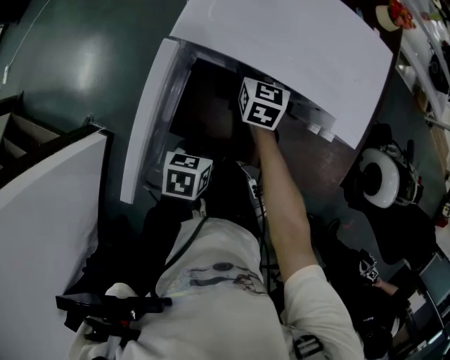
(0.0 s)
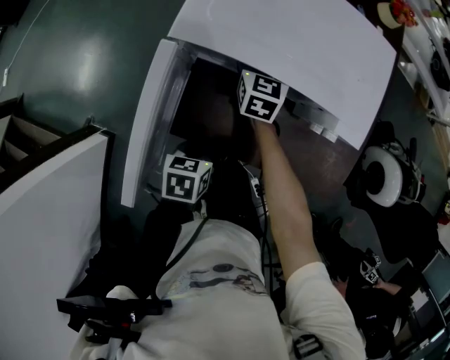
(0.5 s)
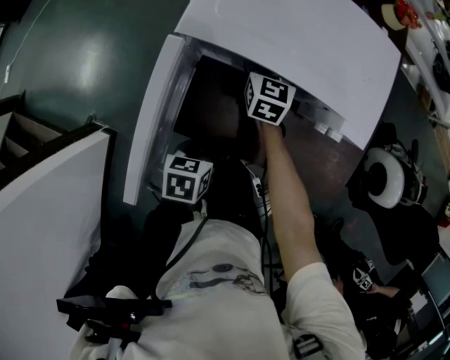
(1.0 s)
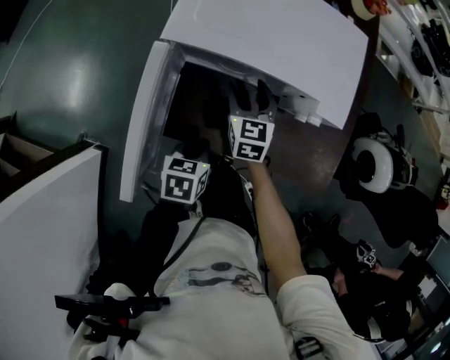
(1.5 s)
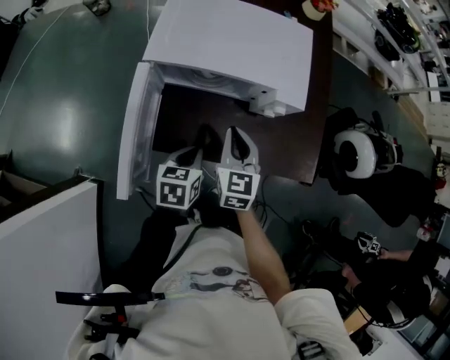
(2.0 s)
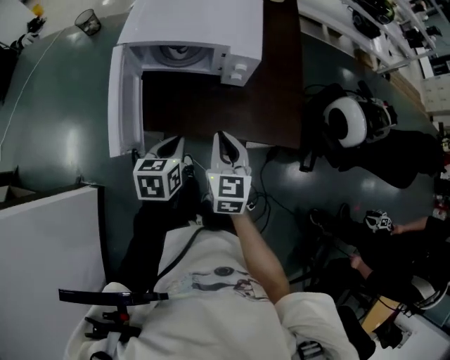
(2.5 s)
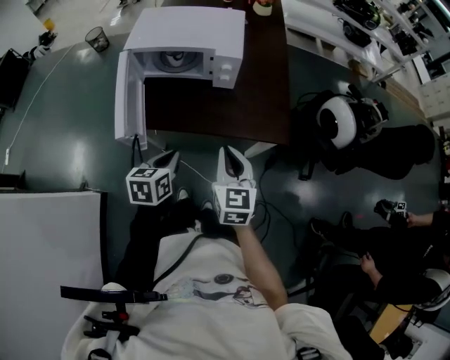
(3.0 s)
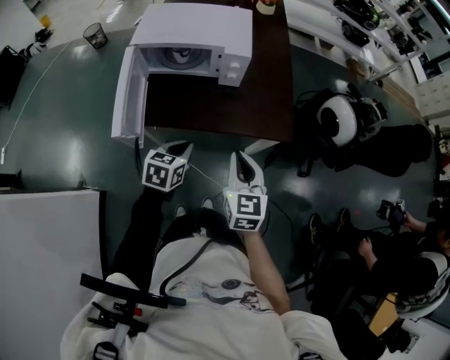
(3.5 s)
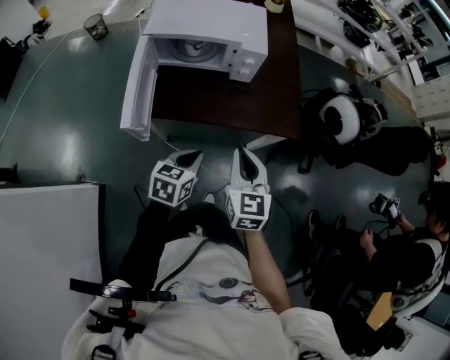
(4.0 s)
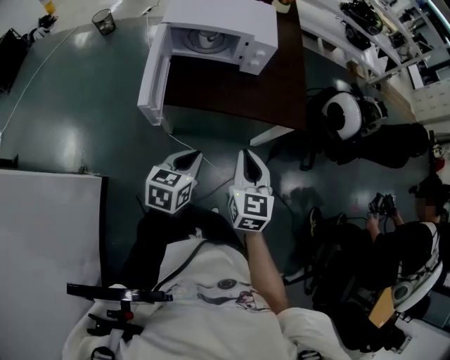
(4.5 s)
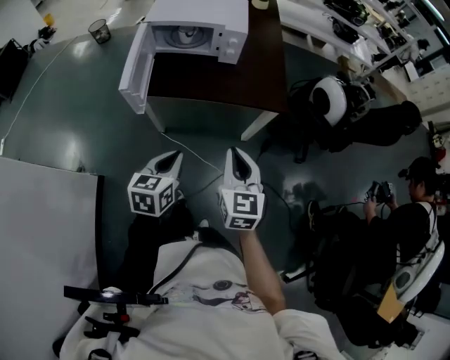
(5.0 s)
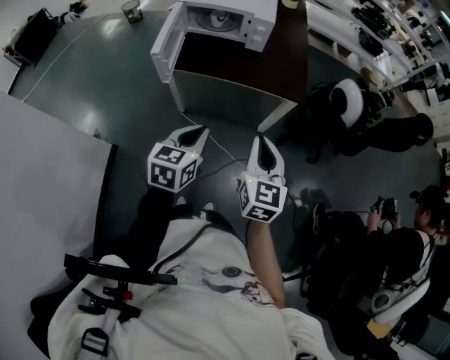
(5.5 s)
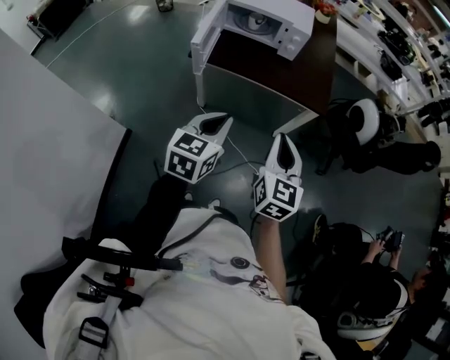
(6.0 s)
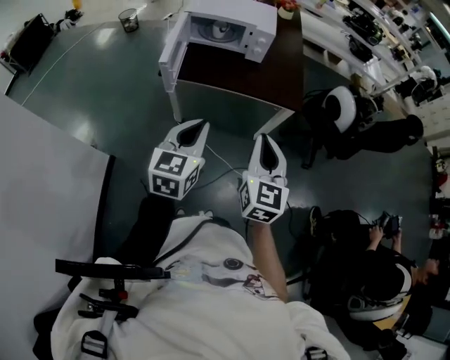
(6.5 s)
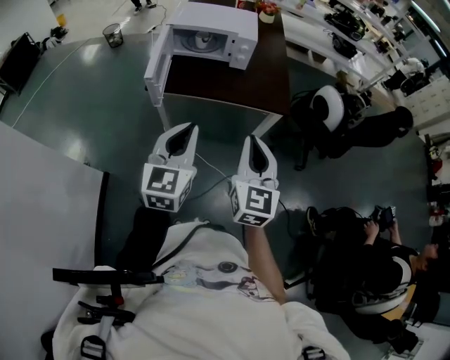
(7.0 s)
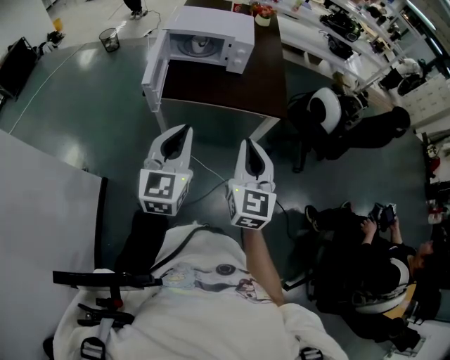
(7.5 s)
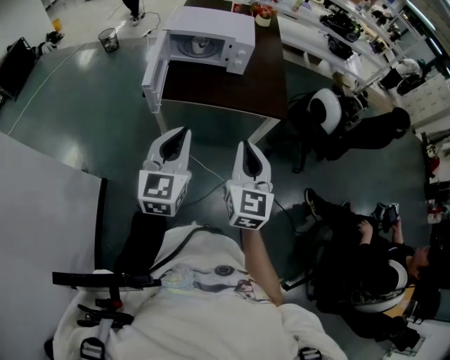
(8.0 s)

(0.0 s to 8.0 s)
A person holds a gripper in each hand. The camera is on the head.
0.0 s - 2.0 s: The left gripper heads upward, covering some 5 cm. Meanwhile the right gripper heads backward, to the right and upward, covering some 25 cm, and closes up.
2.0 s - 4.0 s: Both grippers move backward and to the right, about 20 cm.
4.0 s - 6.0 s: The left gripper is displaced backward and upward by some 25 cm, and rotates some 20 degrees, while the right gripper goes approximately 20 cm backward.
6.0 s - 8.0 s: The right gripper changes place by some 5 cm, while the left gripper shifts roughly 5 cm upward.

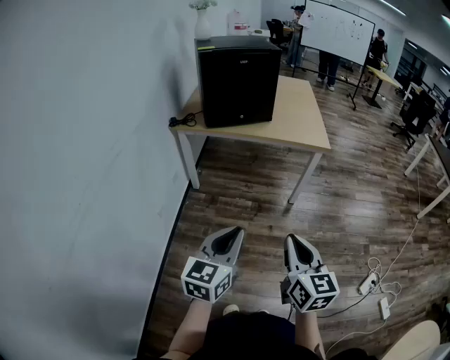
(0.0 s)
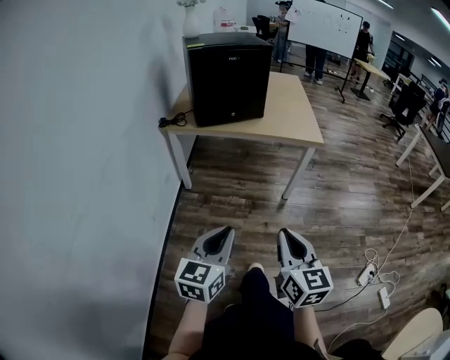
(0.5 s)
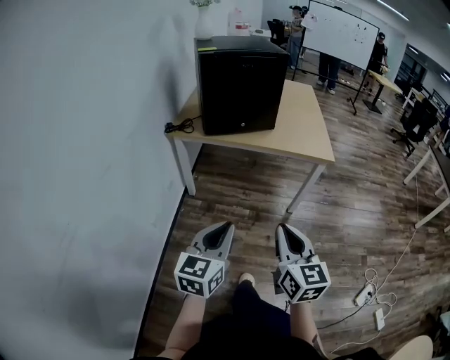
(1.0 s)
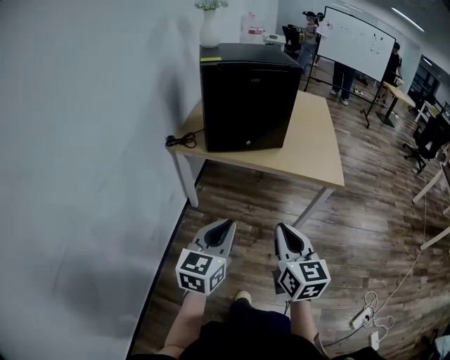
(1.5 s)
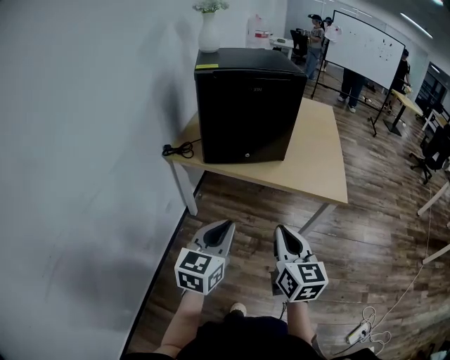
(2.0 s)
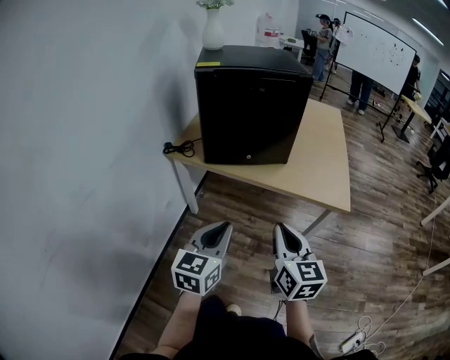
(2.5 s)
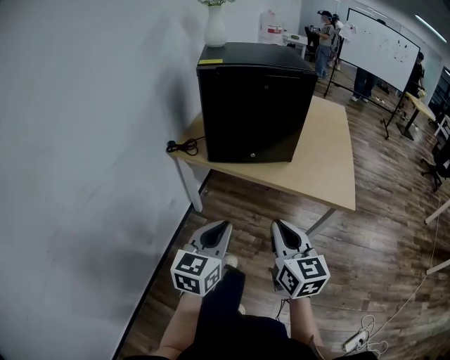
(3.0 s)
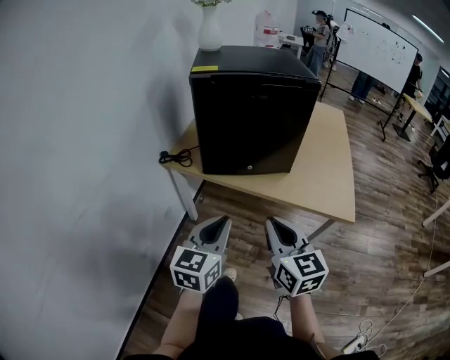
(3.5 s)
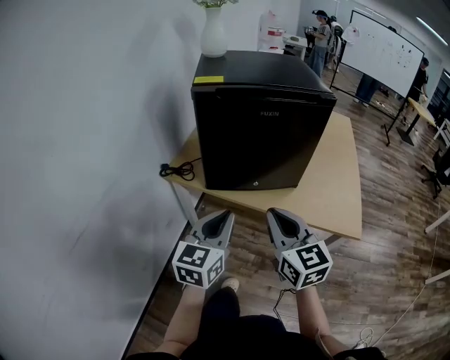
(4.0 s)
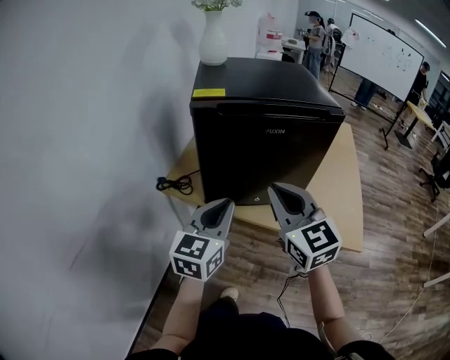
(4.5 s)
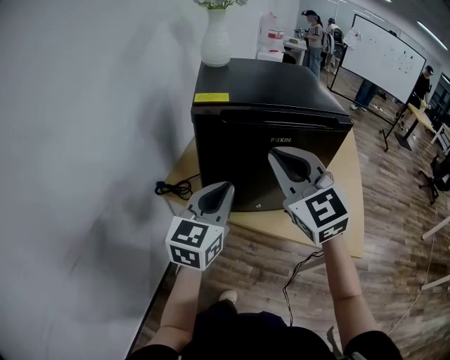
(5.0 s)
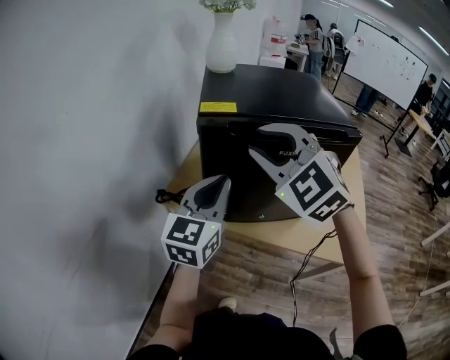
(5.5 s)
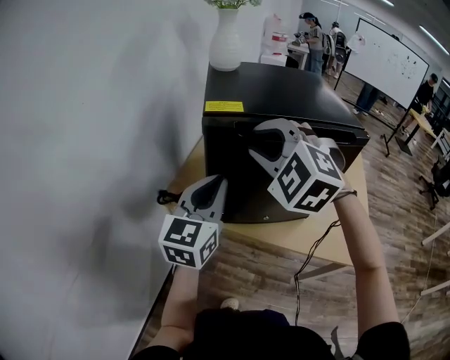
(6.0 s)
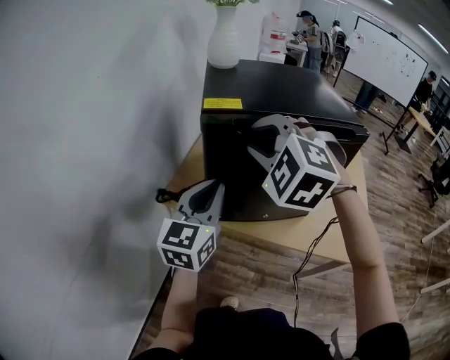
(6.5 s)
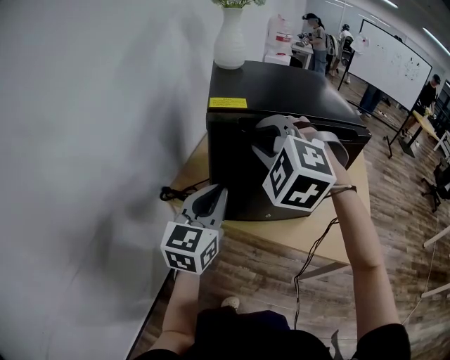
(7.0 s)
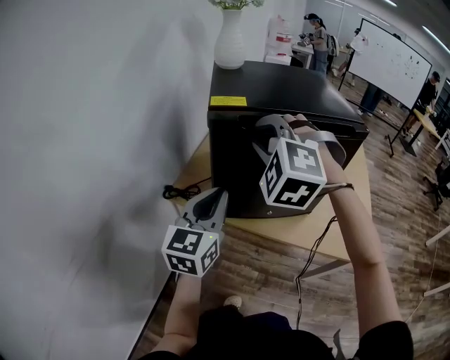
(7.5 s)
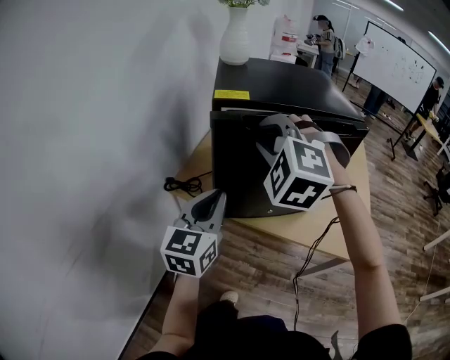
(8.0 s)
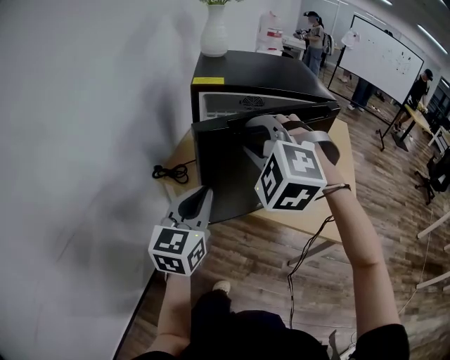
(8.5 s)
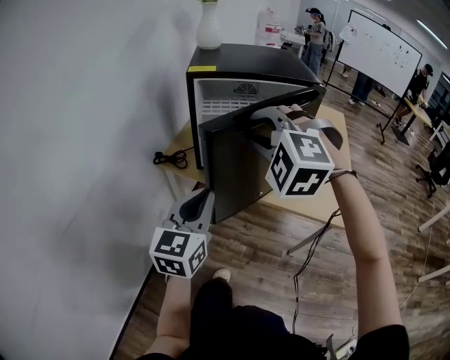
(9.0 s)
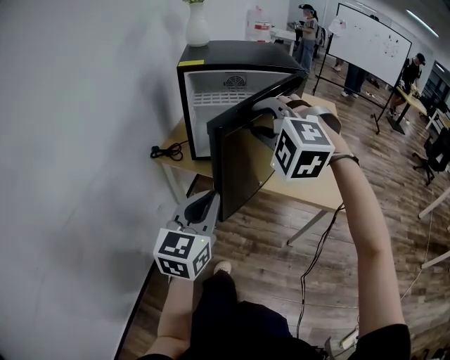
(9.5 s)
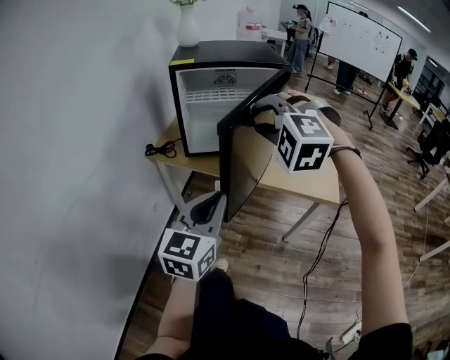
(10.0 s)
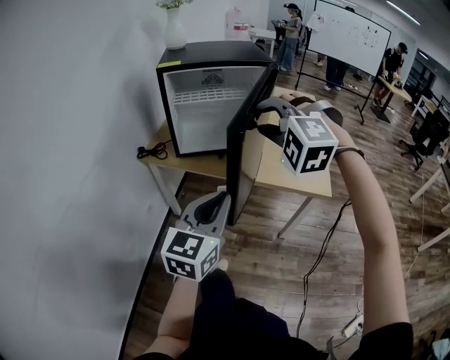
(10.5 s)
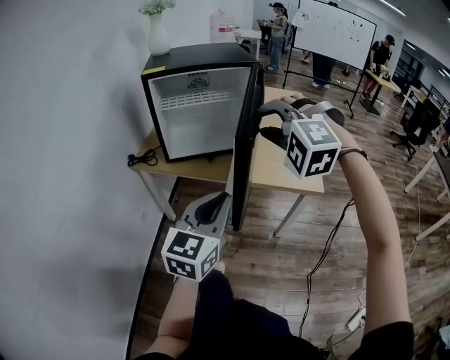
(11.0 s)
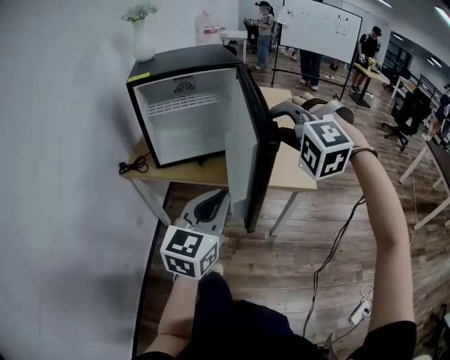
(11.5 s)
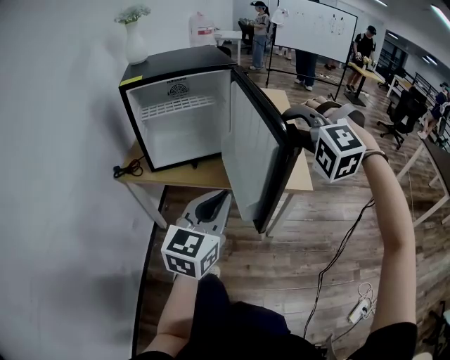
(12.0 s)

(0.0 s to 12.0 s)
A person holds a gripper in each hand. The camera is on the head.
0.0 s - 2.0 s: Both grippers move forward, about 35 cm.
2.0 s - 4.0 s: Both grippers travel together forward, approximately 20 cm.
4.0 s - 6.0 s: The left gripper is displaced forward and upward by about 20 cm. Meanwhile the right gripper shifts some 30 cm forward, upward and to the left, rotates around the line of its fingers by approximately 60 degrees, counterclockwise from behind, and opens.
6.0 s - 8.0 s: The left gripper goes approximately 5 cm backward.
8.0 s - 10.0 s: Both grippers move backward and to the right, about 25 cm.
10.0 s - 12.0 s: The right gripper shifts about 20 cm to the right, while the left gripper moves to the right, approximately 10 cm.

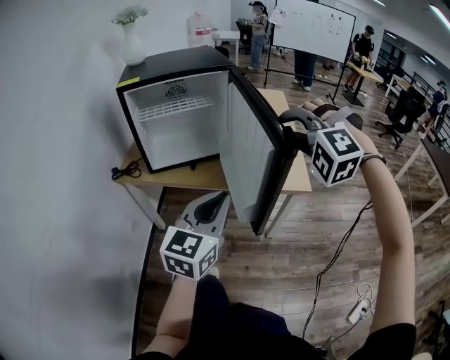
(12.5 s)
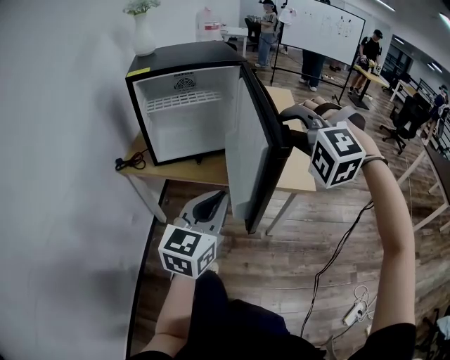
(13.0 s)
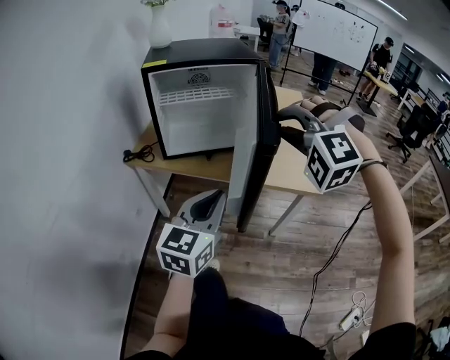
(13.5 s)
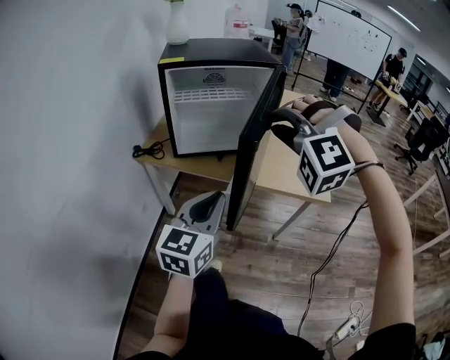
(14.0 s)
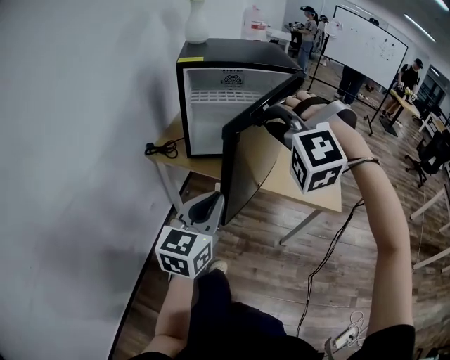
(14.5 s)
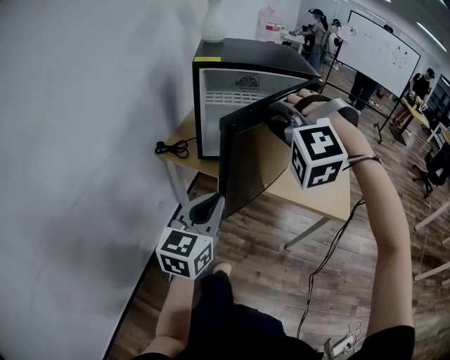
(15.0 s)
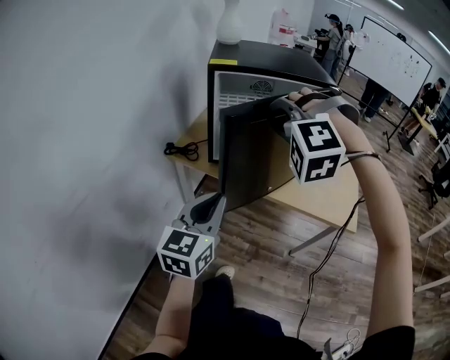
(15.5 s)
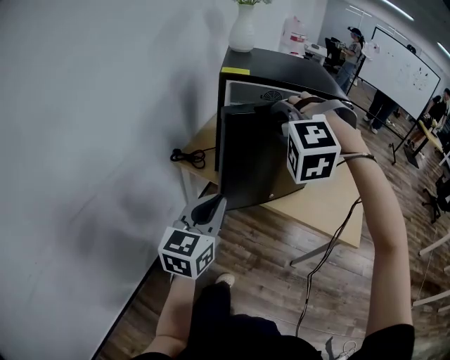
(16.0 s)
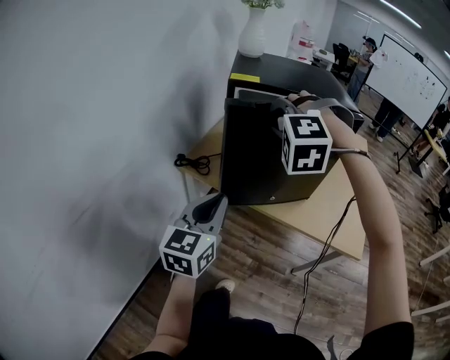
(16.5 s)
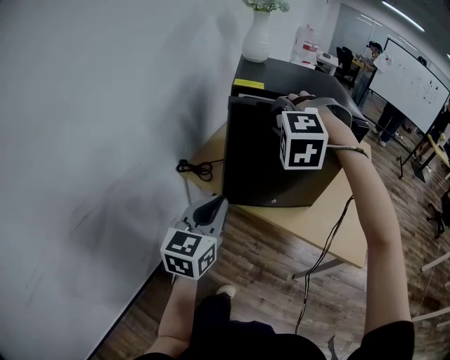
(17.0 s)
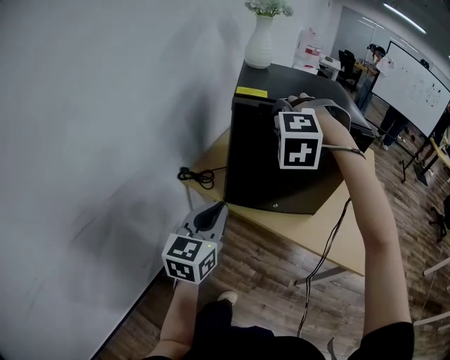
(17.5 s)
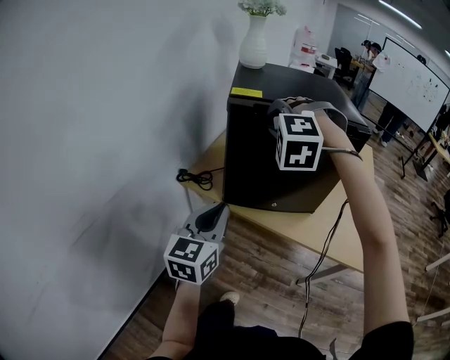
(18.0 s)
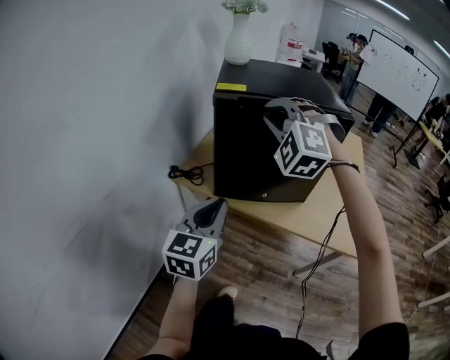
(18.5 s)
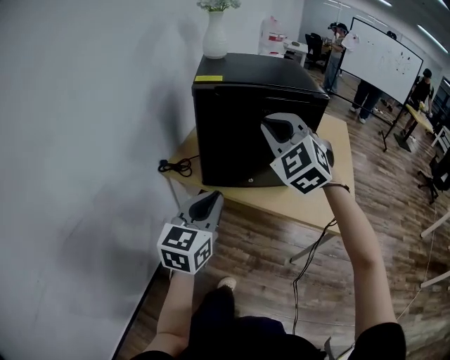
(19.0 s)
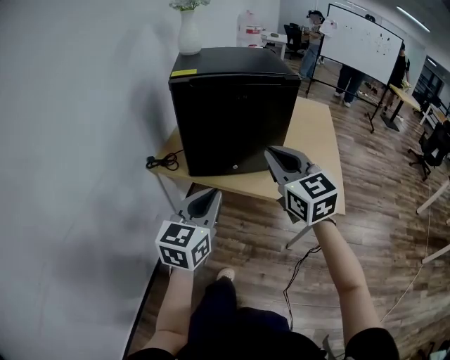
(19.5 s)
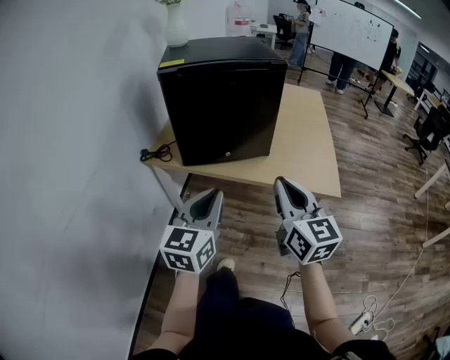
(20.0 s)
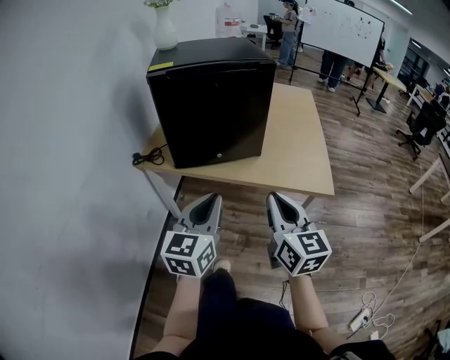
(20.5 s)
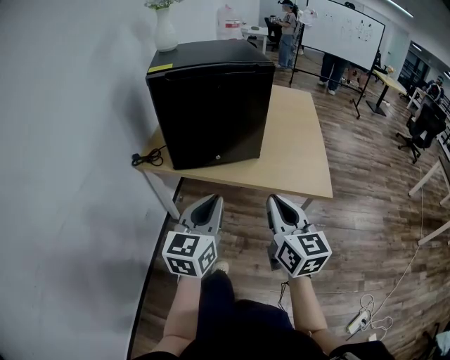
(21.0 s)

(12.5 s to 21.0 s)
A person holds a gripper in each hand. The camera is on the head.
12.5 s - 14.5 s: The two grippers go roughly 15 cm to the left.
14.5 s - 16.5 s: The left gripper shifts some 15 cm to the left and forward; the right gripper heads forward and to the left, covering some 20 cm.
16.5 s - 19.0 s: The left gripper shifts by about 5 cm. Meanwhile the right gripper goes approximately 5 cm to the right, and rotates around the line of its fingers by roughly 40 degrees, clockwise from behind.
19.0 s - 21.0 s: The right gripper travels backward, to the right and downward by approximately 30 cm, and twists approximately 60 degrees clockwise, seen from behind; the left gripper shifts roughly 10 cm to the right and backward.
